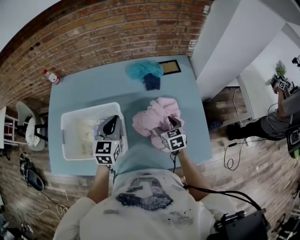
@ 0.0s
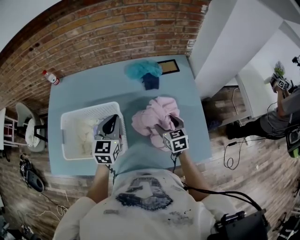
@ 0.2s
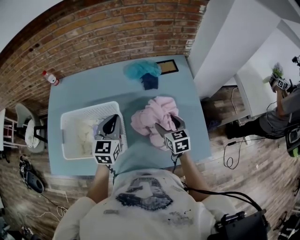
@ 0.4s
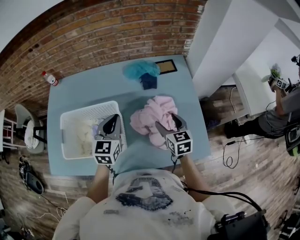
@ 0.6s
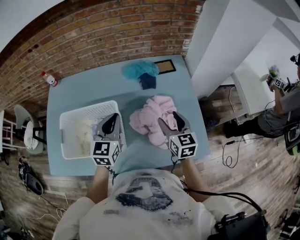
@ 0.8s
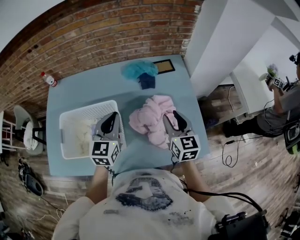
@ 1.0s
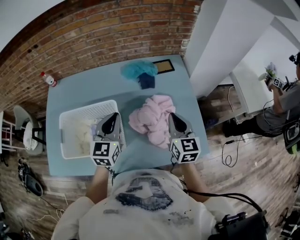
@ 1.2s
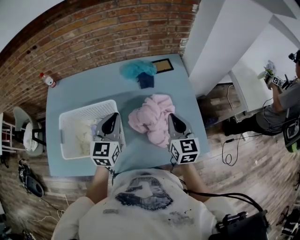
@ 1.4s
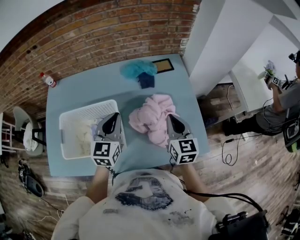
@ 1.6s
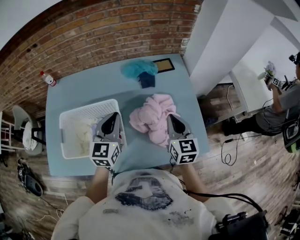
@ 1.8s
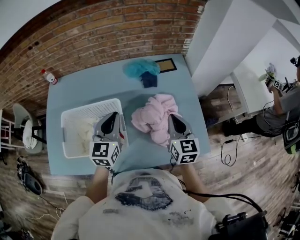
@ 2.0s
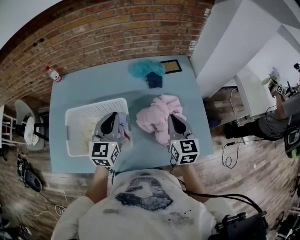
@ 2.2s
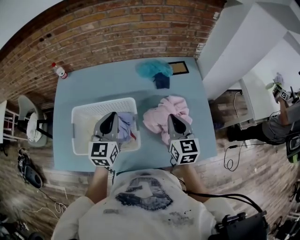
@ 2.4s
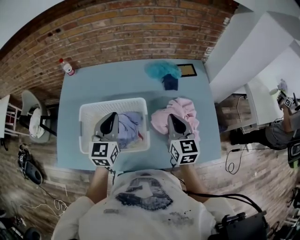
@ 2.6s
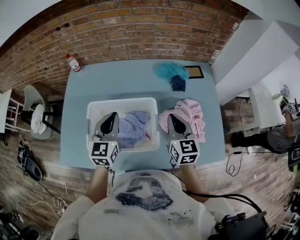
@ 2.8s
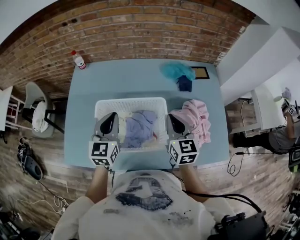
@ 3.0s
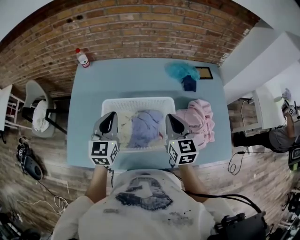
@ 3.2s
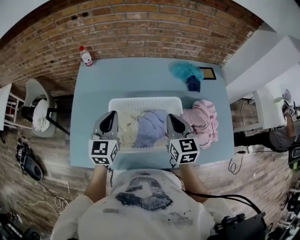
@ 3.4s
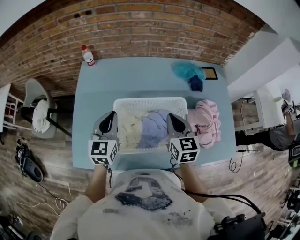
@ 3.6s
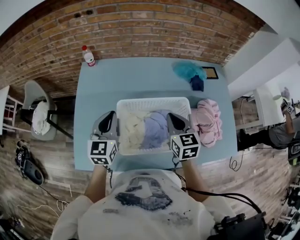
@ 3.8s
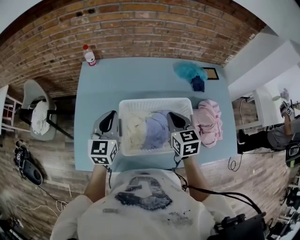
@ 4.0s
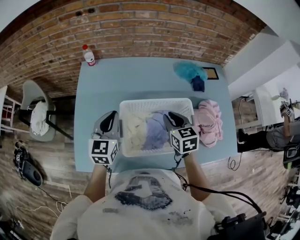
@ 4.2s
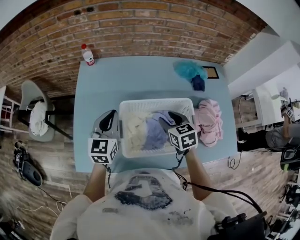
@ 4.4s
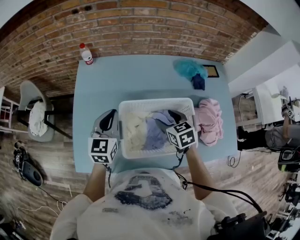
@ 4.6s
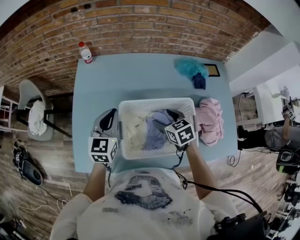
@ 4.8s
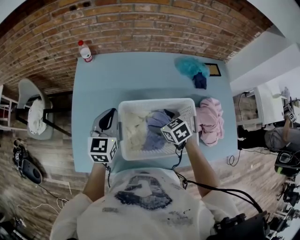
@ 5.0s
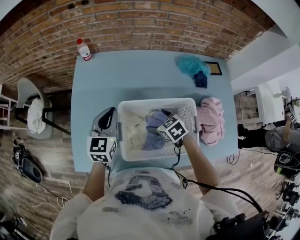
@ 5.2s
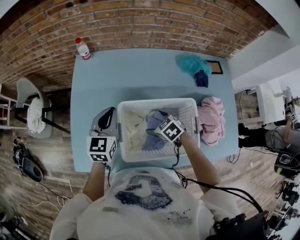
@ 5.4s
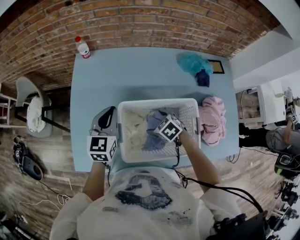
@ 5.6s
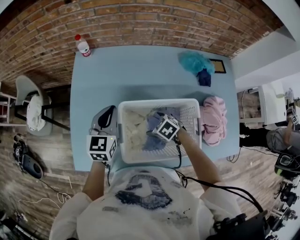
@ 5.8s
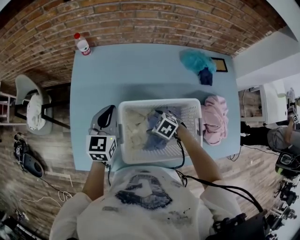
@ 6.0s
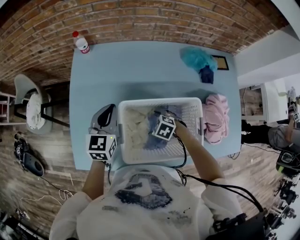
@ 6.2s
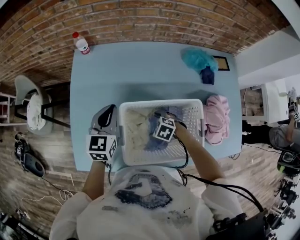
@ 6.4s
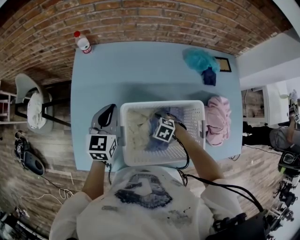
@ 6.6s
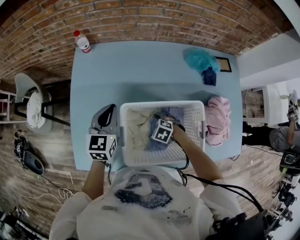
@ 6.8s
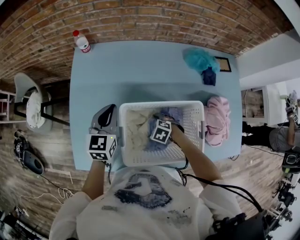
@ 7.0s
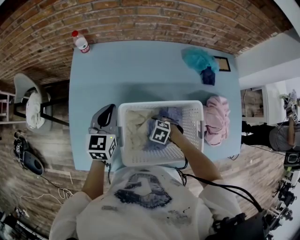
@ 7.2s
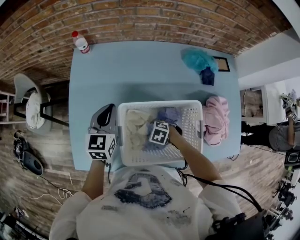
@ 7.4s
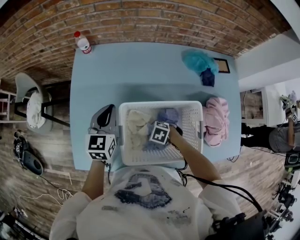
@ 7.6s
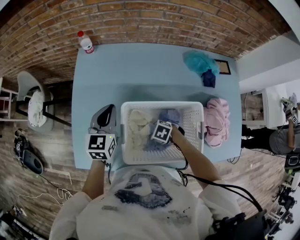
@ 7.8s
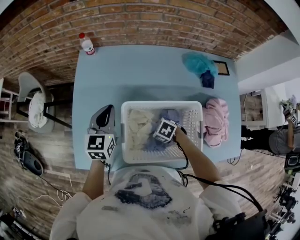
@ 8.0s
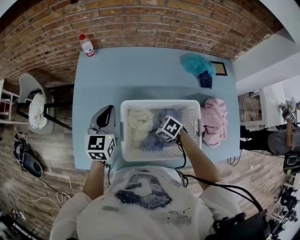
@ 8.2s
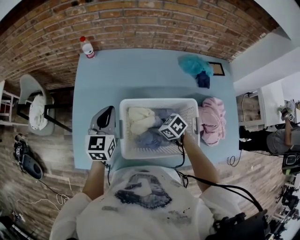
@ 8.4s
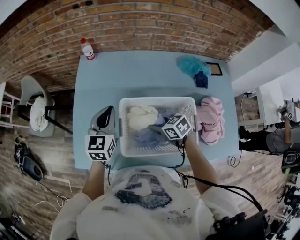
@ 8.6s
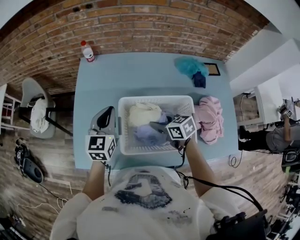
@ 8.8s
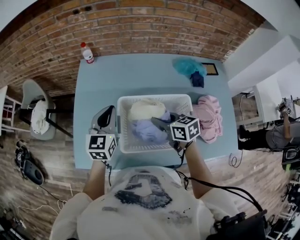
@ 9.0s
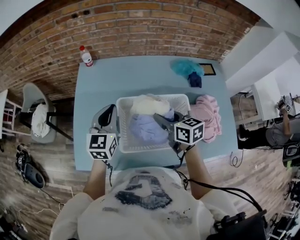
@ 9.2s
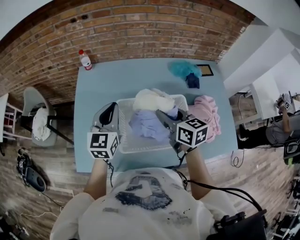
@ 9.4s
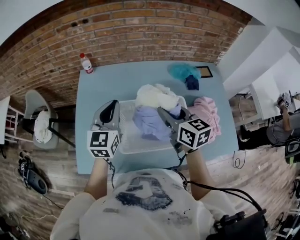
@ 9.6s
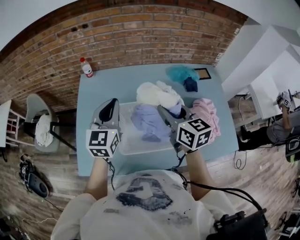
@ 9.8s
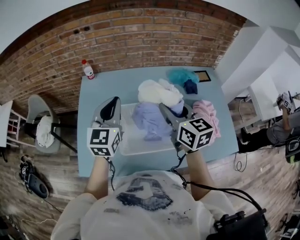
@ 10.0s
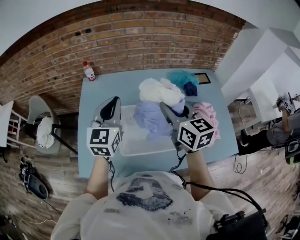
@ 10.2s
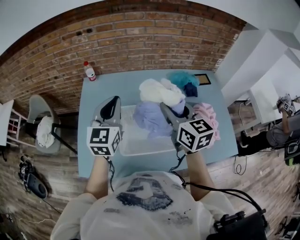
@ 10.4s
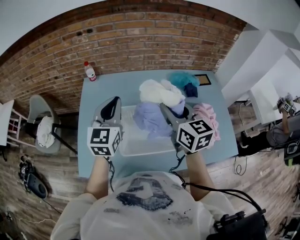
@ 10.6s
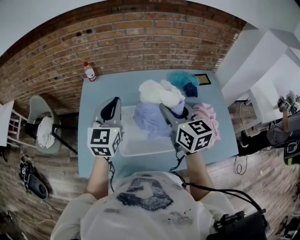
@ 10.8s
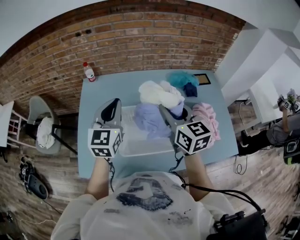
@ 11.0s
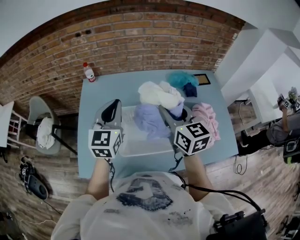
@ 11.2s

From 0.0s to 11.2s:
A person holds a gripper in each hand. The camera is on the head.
From 0.0s to 1.6s: The right gripper goes approximately 15 cm upward, turns by some 30 degrees, and closes up. The left gripper shifts roughly 5 cm upward.
From 1.6s to 3.2s: Both grippers move to the left, some 30 cm.
From 3.2s to 4.8s: The left gripper heads to the left and forward, covering approximately 10 cm. The right gripper moves to the left and downward, about 15 cm, changes its angle by roughly 30 degrees, and opens.
From 4.8s to 6.4s: The left gripper ends up about 5 cm from where it was. The right gripper heads downward, covering roughly 15 cm, and rotates some 50 degrees.
From 6.4s to 8.0s: The right gripper closes its fingers.
From 8.0s to 9.6s: The left gripper heads upward, covering approximately 10 cm, while the right gripper shifts some 30 cm upward, and tips its fingers upward by approximately 50 degrees.
From 9.6s to 11.2s: The two grippers go approximately 5 cm upward.

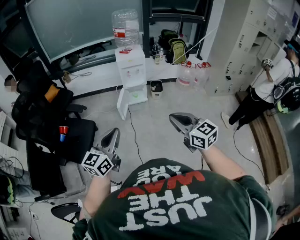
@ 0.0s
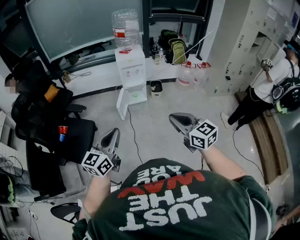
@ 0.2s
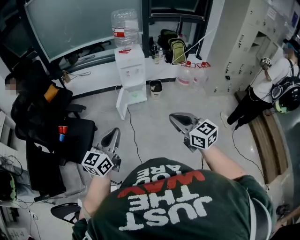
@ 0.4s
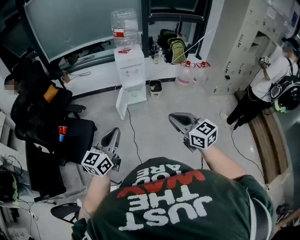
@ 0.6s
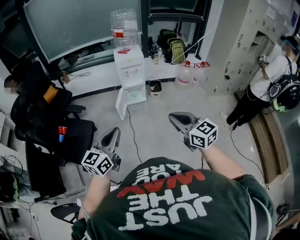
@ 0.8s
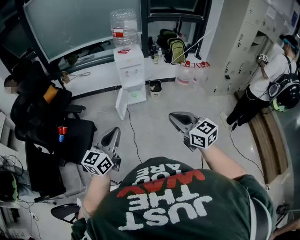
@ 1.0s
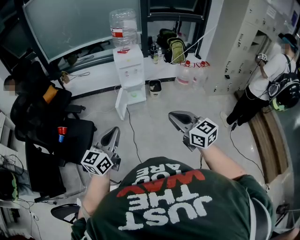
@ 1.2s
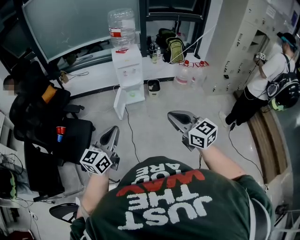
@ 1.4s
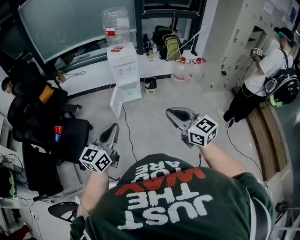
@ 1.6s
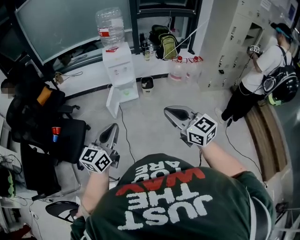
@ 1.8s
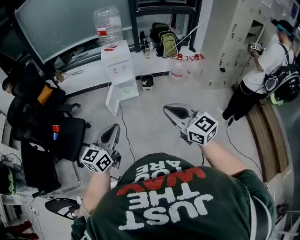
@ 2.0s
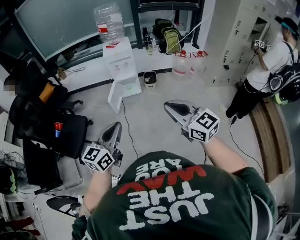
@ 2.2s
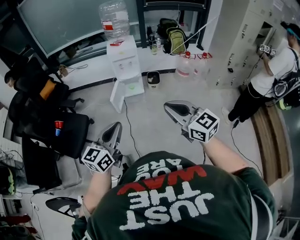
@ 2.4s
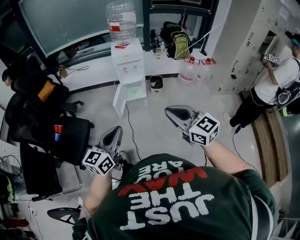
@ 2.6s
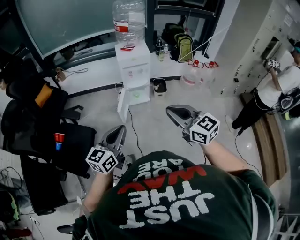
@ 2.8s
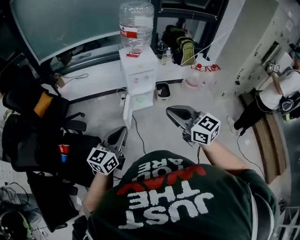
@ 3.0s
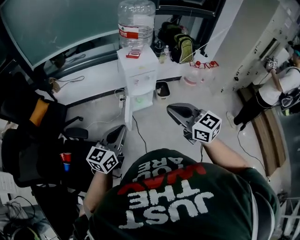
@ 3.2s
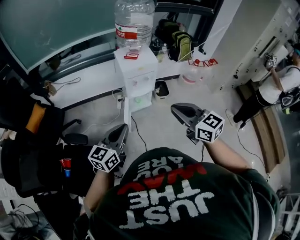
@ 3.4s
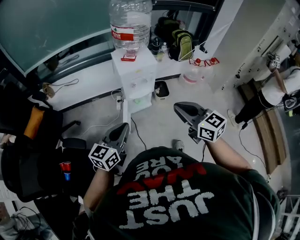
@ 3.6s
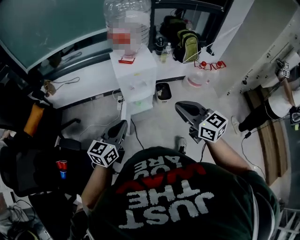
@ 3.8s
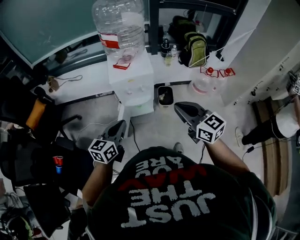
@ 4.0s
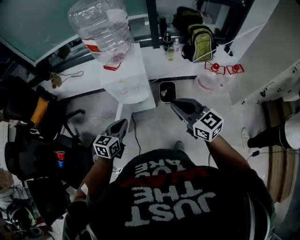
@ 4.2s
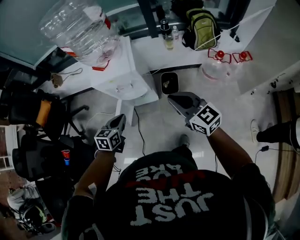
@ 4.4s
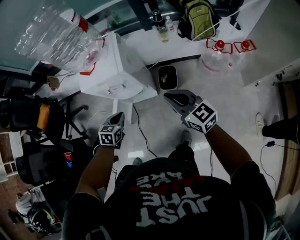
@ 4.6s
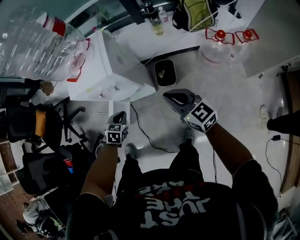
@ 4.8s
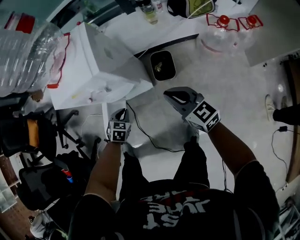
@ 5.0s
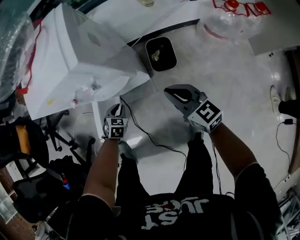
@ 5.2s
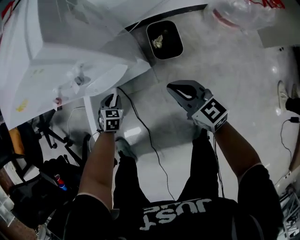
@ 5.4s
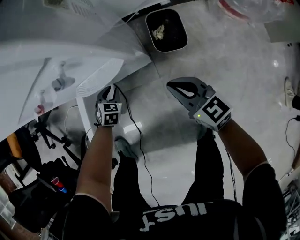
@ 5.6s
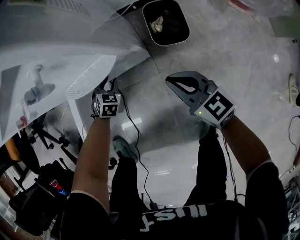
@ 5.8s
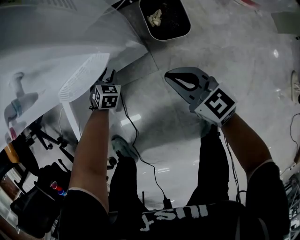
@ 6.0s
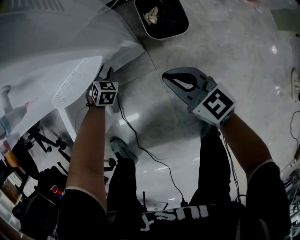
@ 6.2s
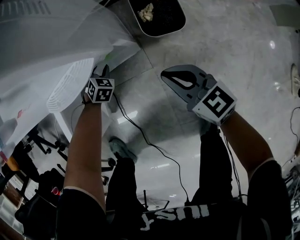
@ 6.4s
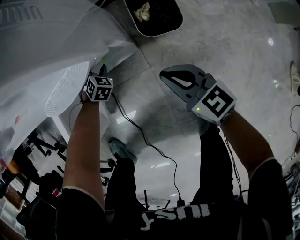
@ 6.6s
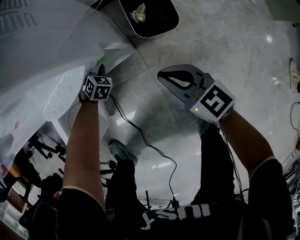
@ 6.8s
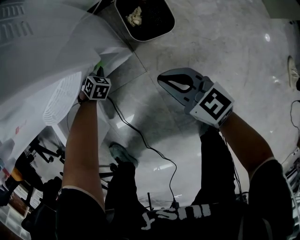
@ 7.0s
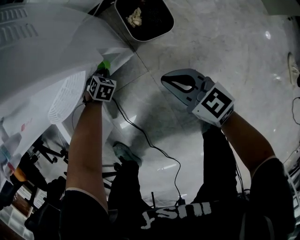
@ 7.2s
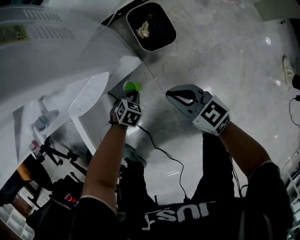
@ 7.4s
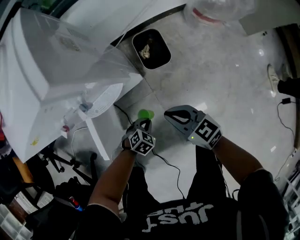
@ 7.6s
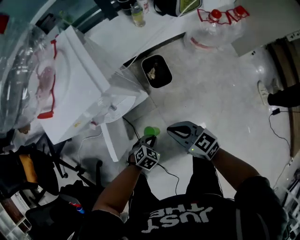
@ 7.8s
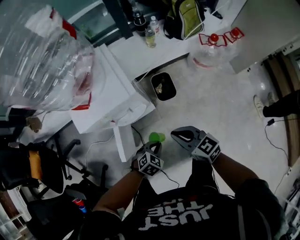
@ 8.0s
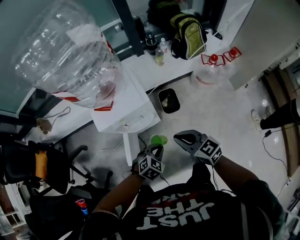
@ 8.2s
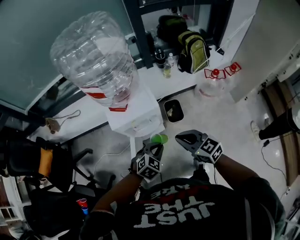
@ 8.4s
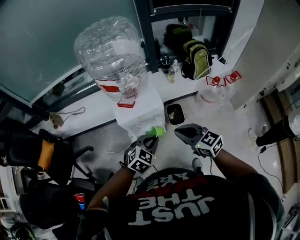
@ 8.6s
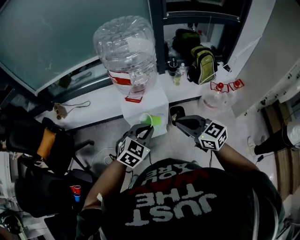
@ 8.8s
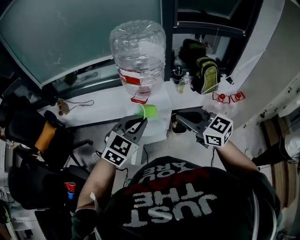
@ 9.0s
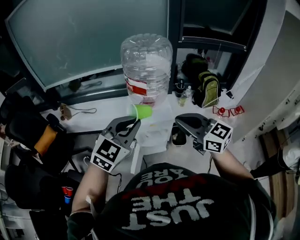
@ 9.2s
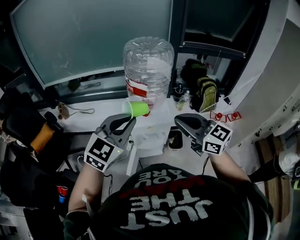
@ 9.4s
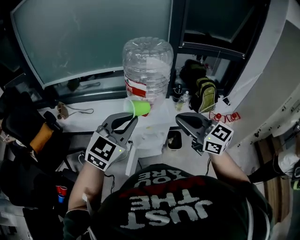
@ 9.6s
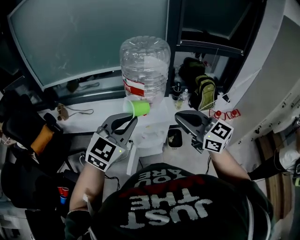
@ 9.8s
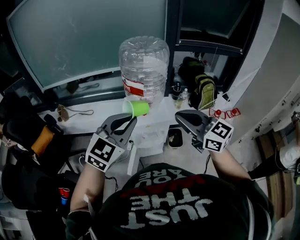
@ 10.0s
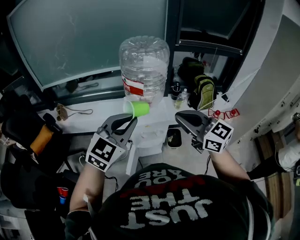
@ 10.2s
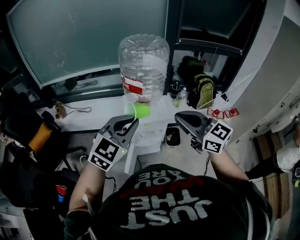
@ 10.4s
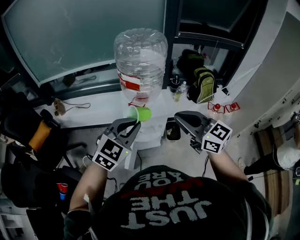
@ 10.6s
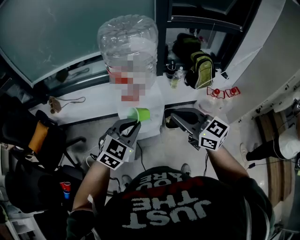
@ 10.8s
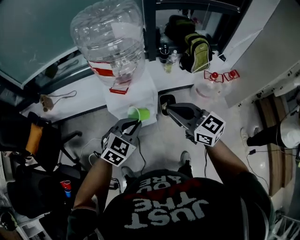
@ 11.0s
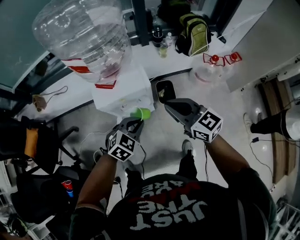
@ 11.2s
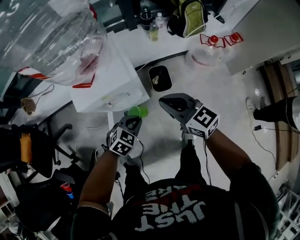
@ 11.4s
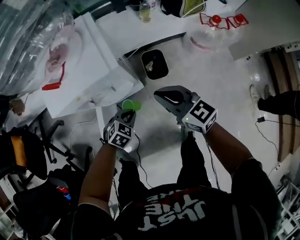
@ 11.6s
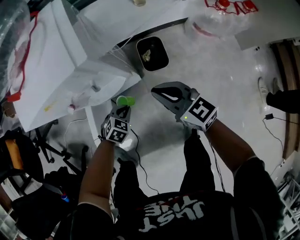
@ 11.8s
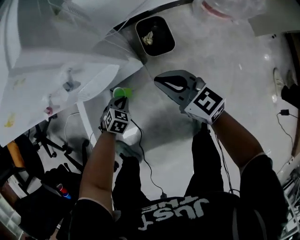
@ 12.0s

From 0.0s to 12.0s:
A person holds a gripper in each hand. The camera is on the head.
From 0.0s to 1.6s: The two grippers go some 5 cm to the right.
From 1.6s to 3.0s: Both grippers move forward and to the left, approximately 35 cm.
From 3.0s to 4.4s: The pair of grippers is taken forward and to the right, about 50 cm. The grippers both shift downward by roughly 20 cm. The left gripper tilts its fingers about 30 degrees downward.
From 4.4s to 6.0s: The two grippers go about 60 cm downward. The left gripper turns by about 50 degrees, and opens.
From 6.0s to 7.6s: The right gripper shifts roughly 10 cm upward; the left gripper ends up approximately 30 cm from where it was, turns by roughly 30 degrees, and closes its fingers.
From 7.6s to 9.0s: Both grippers move upward, about 70 cm. The left gripper tilts its fingers roughly 50 degrees upward, while the right gripper turns by about 30 degrees.
From 9.0s to 10.4s: Both grippers travel together upward, about 5 cm.
From 10.4s to 12.0s: Both grippers move downward, roughly 80 cm. The left gripper angles its fingers downward, by about 50 degrees; the right gripper changes its angle by roughly 20 degrees.
